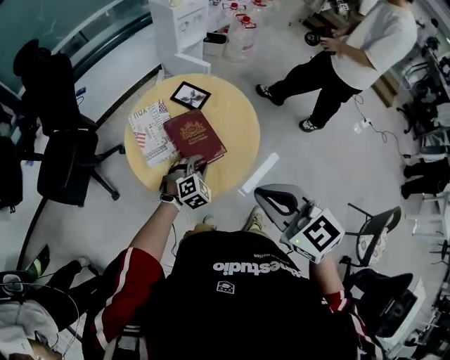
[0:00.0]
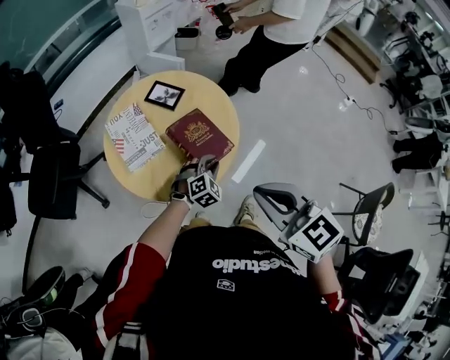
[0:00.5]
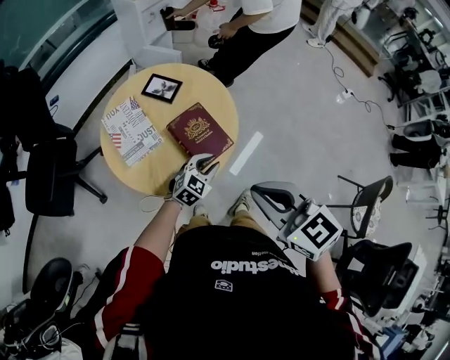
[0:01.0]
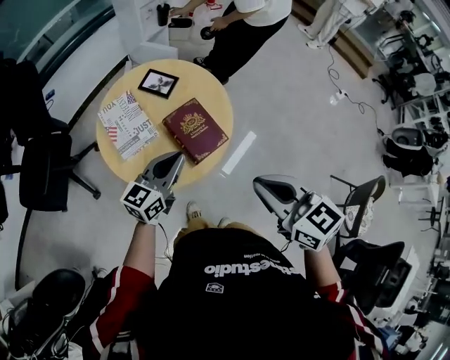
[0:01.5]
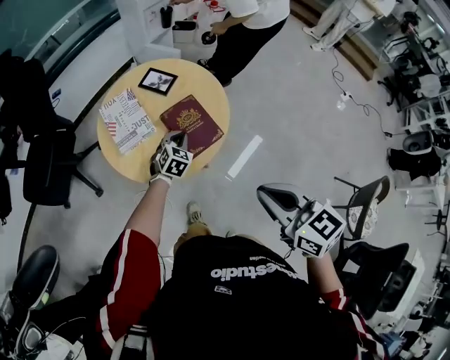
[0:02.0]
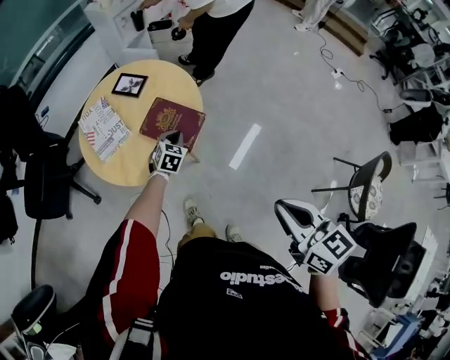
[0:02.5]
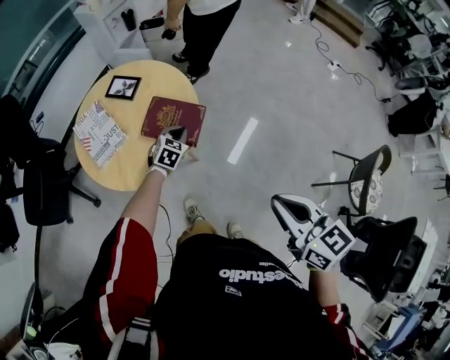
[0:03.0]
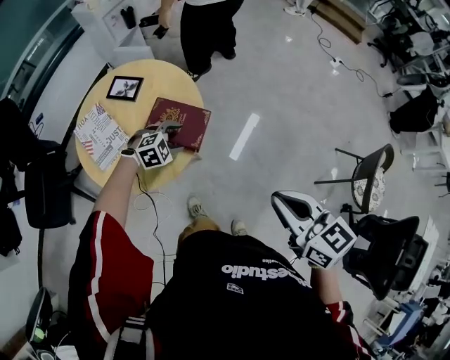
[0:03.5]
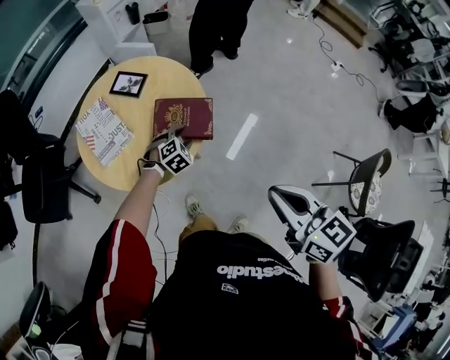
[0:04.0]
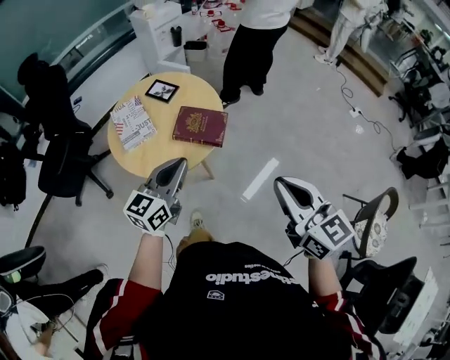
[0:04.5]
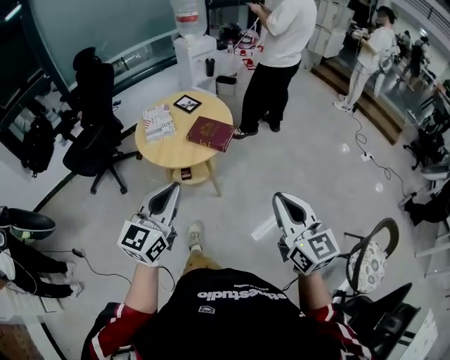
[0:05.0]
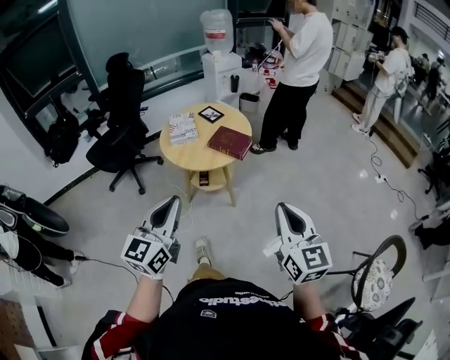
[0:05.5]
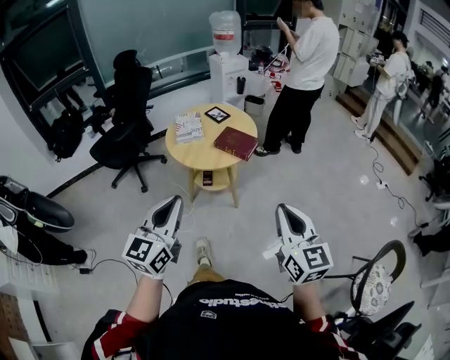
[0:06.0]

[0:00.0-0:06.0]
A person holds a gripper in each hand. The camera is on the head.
0:00.0 to 0:02.0: The left gripper is displaced to the right by some 5 cm, moves approximately 15 cm upward and comes back, and rotates roughly 30 degrees. Meanwhile the right gripper travels to the right and backward by some 15 cm.
0:02.0 to 0:04.0: The left gripper changes place by roughly 10 cm, swivels about 30 degrees, and opens up.
0:04.0 to 0:06.0: The right gripper shifts some 25 cm backward, and turns by about 30 degrees. The left gripper goes roughly 70 cm backward and upward, tips its fingers upward by about 60 degrees, and closes.

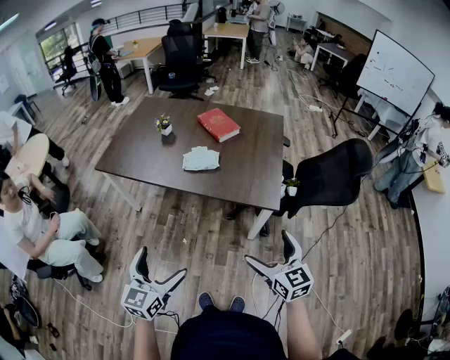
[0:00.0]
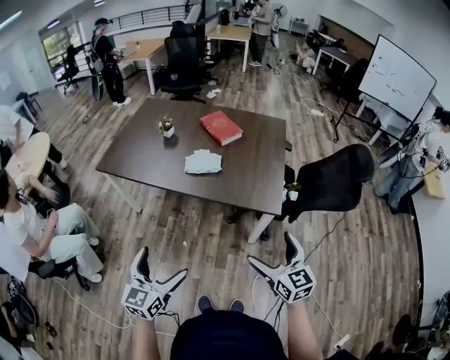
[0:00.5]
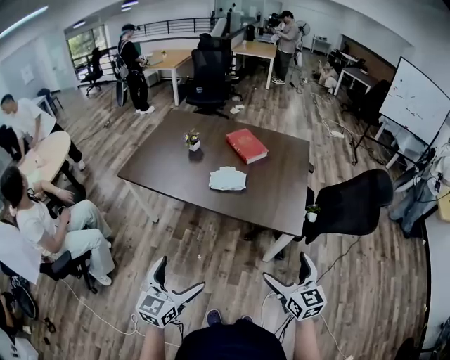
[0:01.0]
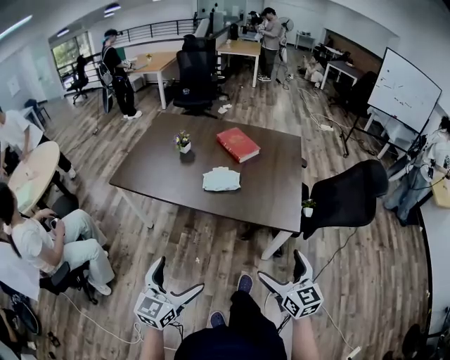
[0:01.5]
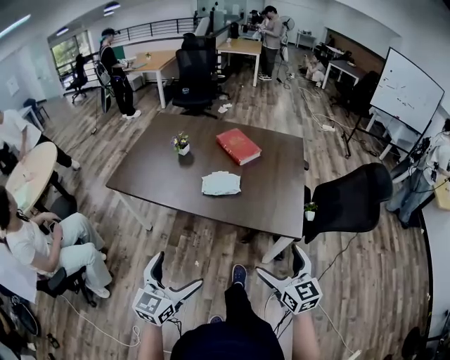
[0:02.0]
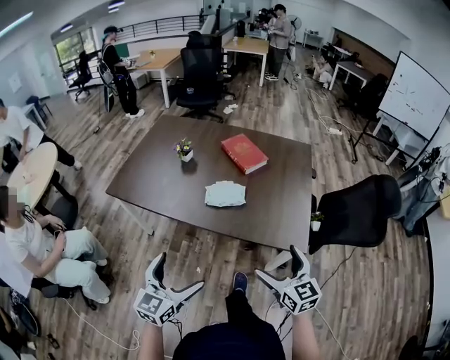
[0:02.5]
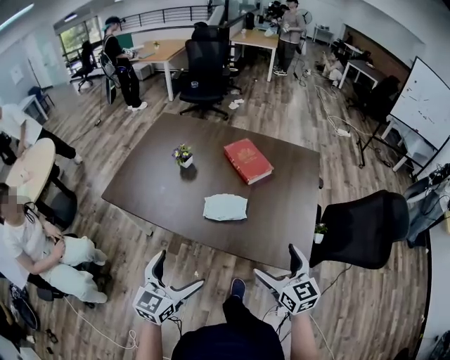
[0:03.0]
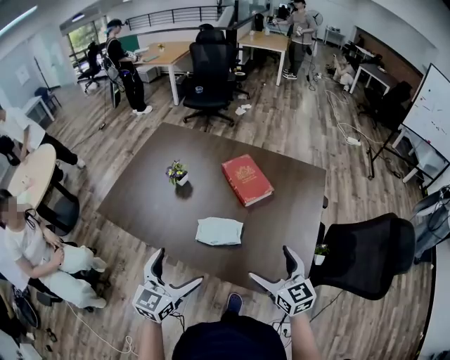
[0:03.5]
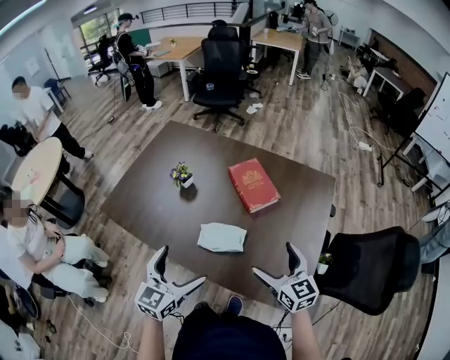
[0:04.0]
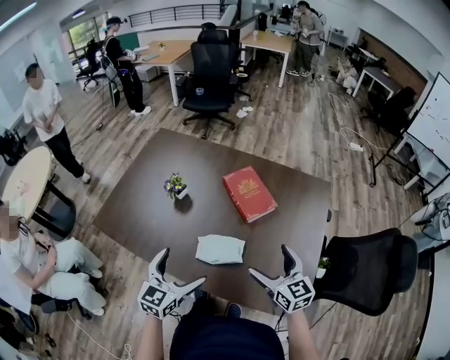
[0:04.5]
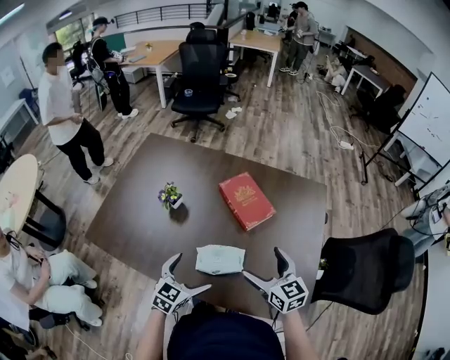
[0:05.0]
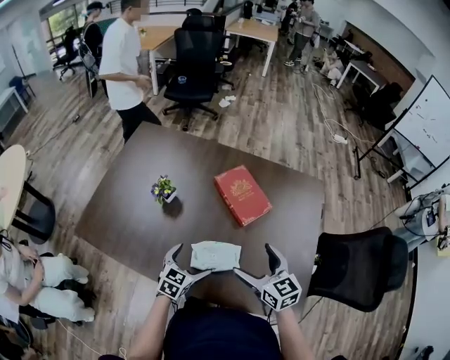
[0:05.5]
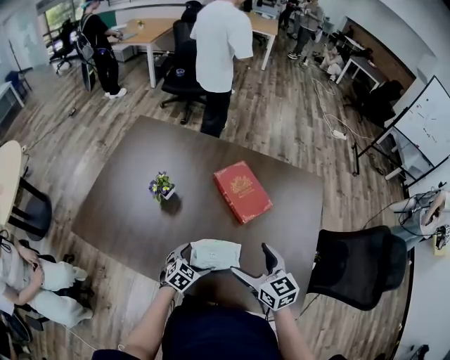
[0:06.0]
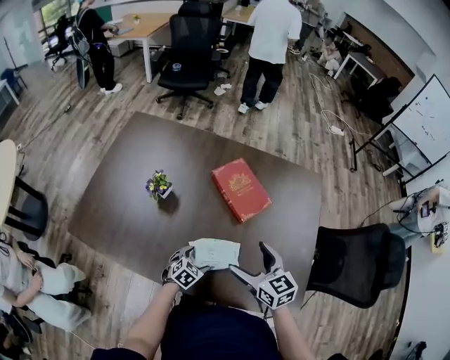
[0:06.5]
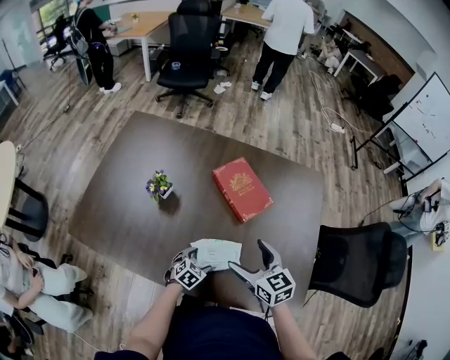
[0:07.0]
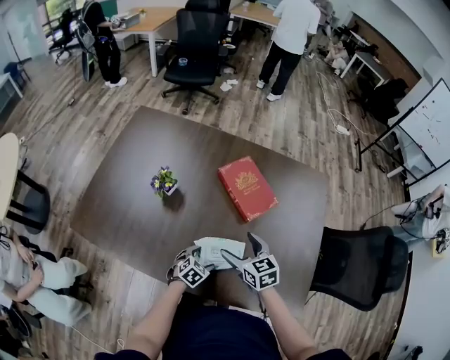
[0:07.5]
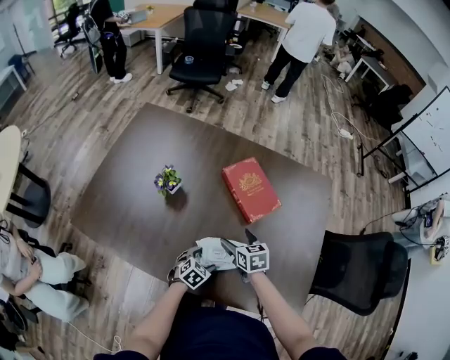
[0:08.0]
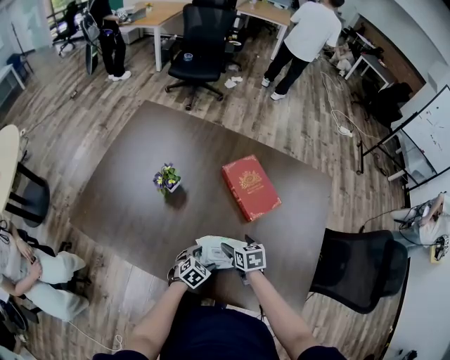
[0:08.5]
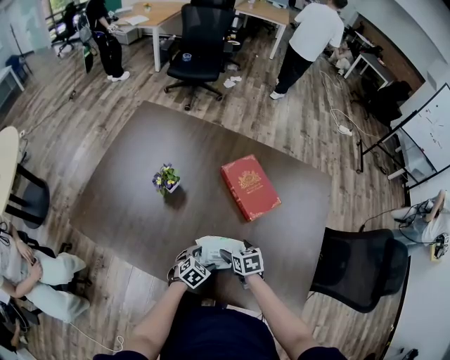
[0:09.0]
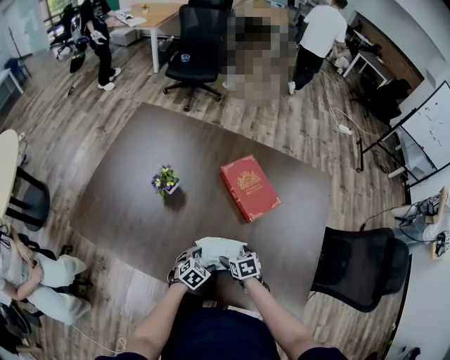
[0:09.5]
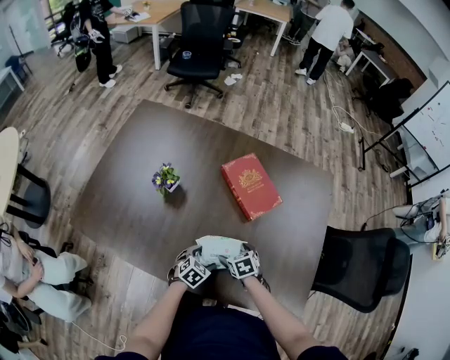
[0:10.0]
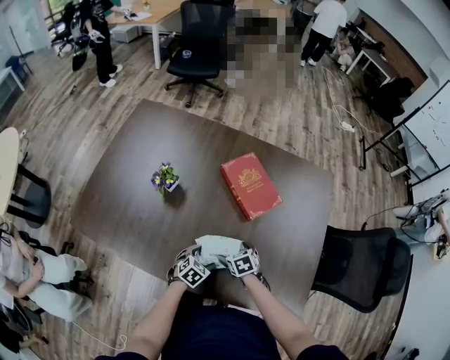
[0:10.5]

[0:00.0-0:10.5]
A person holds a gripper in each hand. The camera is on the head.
0:00.0 to 0:02.0: The right gripper moves forward and to the left, about 10 cm. Meanwhile the left gripper heads forward, covering roughly 10 cm.
0:02.0 to 0:04.0: Both grippers travel together forward, roughly 40 cm.
0:04.0 to 0:06.5: The right gripper shifts approximately 15 cm to the left, forward and downward. Meanwhile the left gripper heads downward and forward, covering approximately 35 cm, and tips its fingers downward by approximately 40 degrees.
0:06.5 to 0:08.5: The right gripper shifts about 20 cm downward, and swivels about 30 degrees.
0:08.5 to 0:10.5: The right gripper travels downward by about 5 cm.

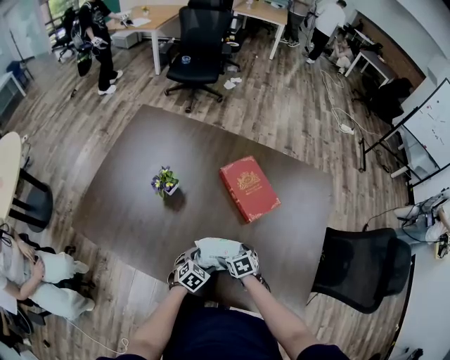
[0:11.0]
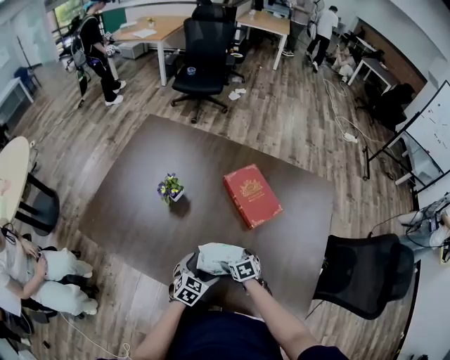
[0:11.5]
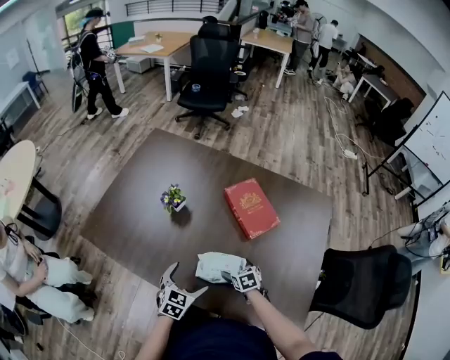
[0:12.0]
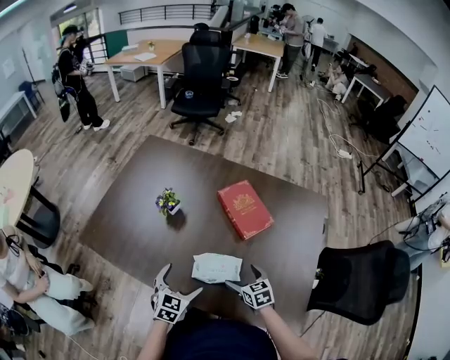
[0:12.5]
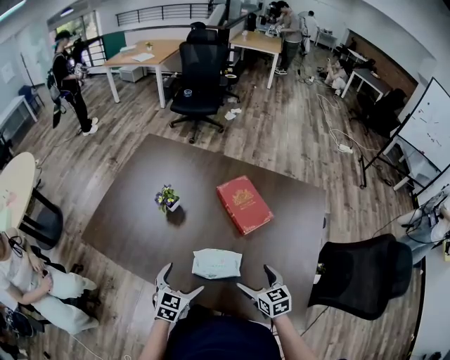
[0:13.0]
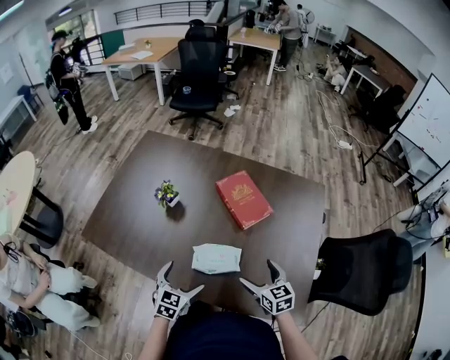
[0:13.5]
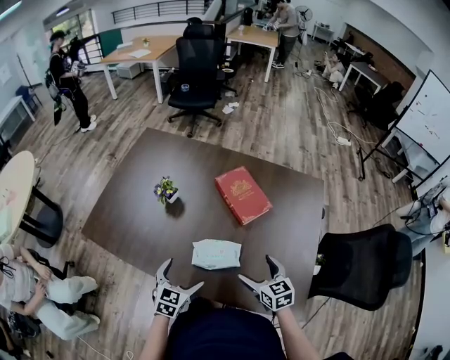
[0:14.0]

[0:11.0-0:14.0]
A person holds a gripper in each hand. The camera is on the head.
0:11.0 to 0:12.5: The left gripper travels upward by some 15 cm, and rotates some 30 degrees. The right gripper shifts roughly 10 cm upward, and rotates about 20 degrees.
0:12.5 to 0:14.0: The right gripper is displaced upward by some 10 cm.

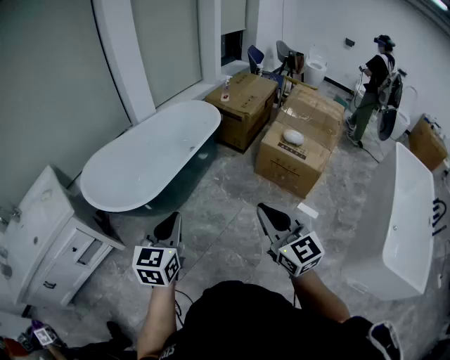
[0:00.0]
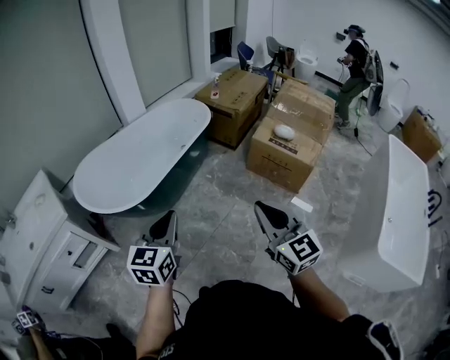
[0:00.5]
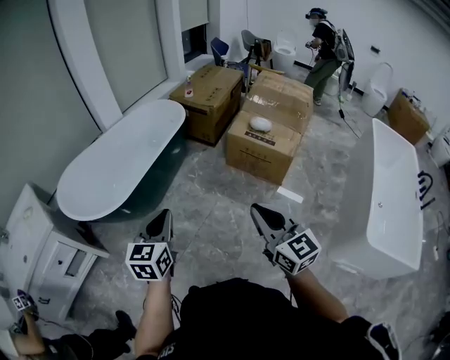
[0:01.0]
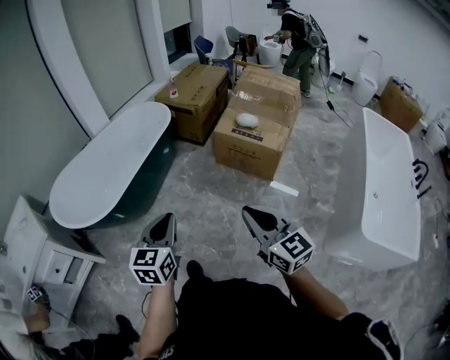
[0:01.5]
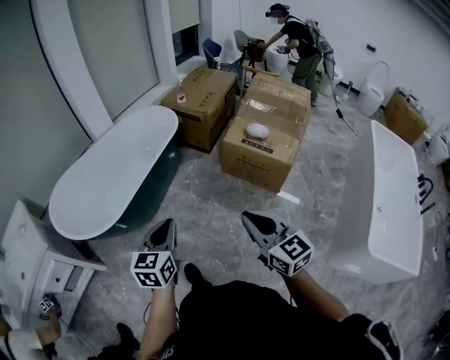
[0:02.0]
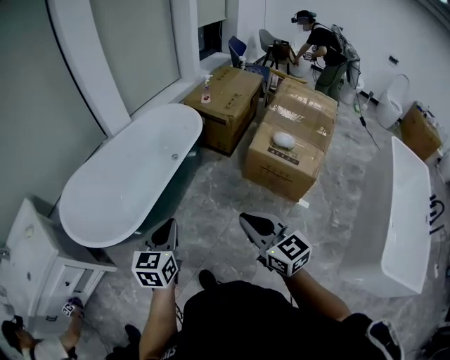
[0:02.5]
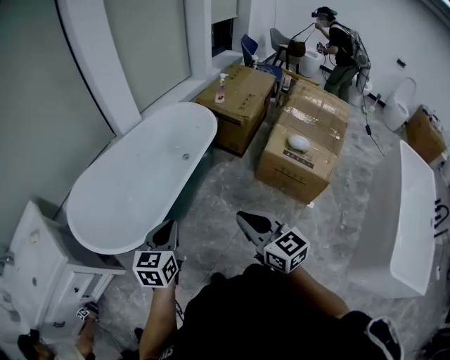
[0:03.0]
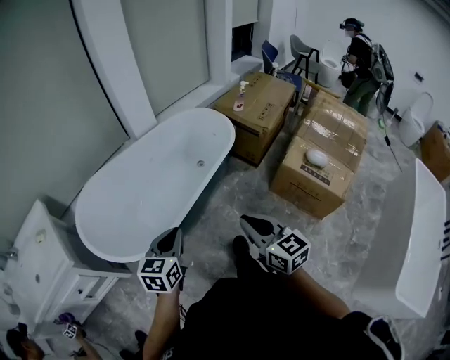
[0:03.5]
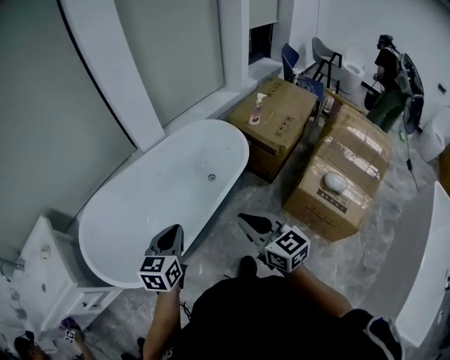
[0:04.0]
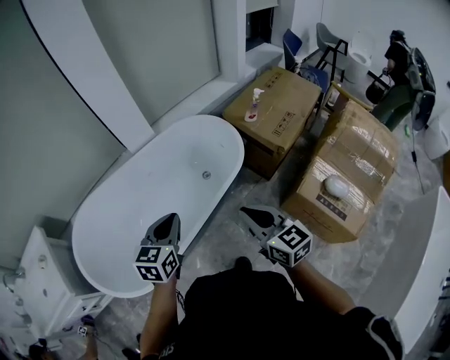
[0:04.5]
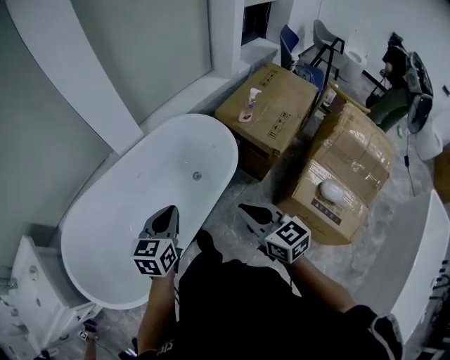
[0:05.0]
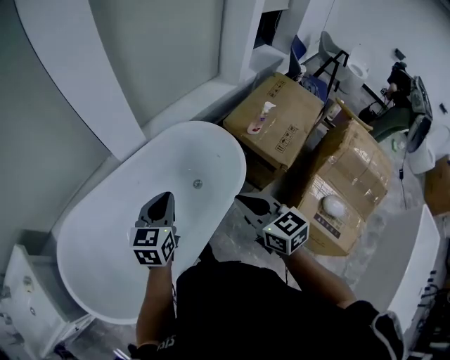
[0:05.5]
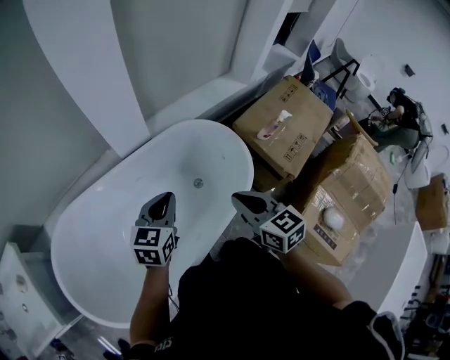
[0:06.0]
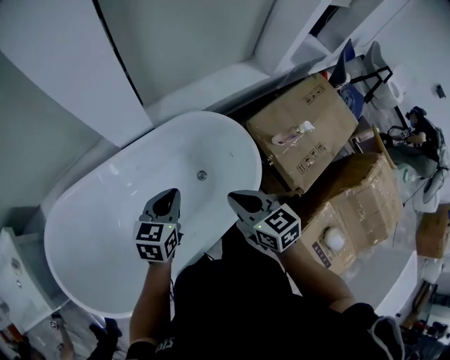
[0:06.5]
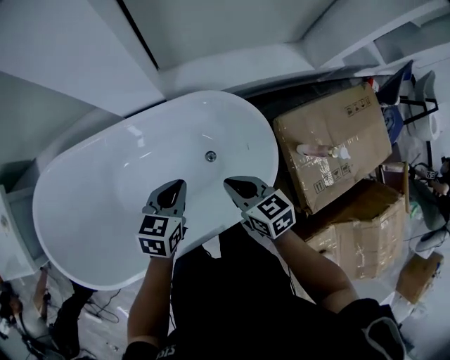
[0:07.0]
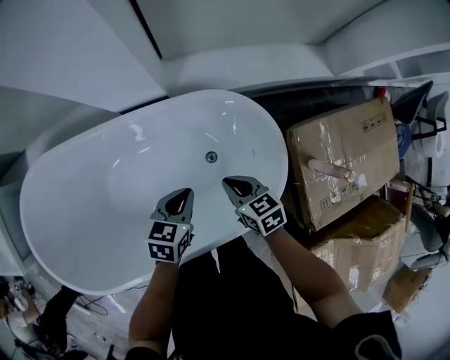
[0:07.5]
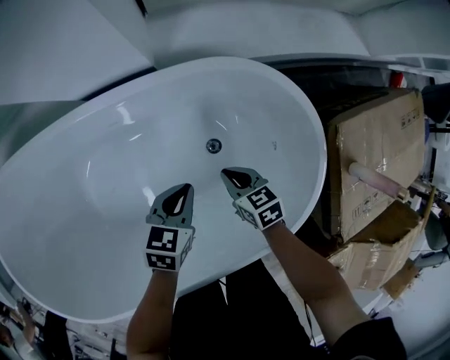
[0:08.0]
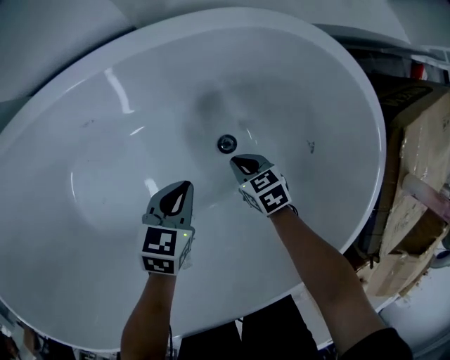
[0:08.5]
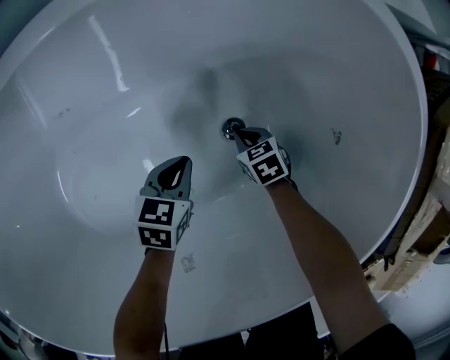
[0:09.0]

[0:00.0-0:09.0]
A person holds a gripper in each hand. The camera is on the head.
0:00.0 to 0:02.0: The left gripper is displaced to the right and forward by about 15 cm; the right gripper heads to the right, covering roughly 15 cm.
0:02.0 to 0:04.5: The pair of grippers is taken forward, approximately 60 cm. The right gripper changes its angle by about 20 degrees.
0:04.5 to 0:07.0: The pair of grippers is taken forward, roughly 50 cm. Both grippers travel together downward, some 25 cm. The left gripper rotates about 20 degrees; the right gripper turns by some 40 degrees.
0:07.0 to 0:09.0: The two grippers go about 60 cm downward. The right gripper tips its fingers downward by about 30 degrees.
